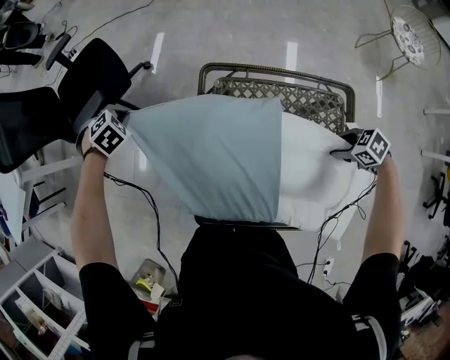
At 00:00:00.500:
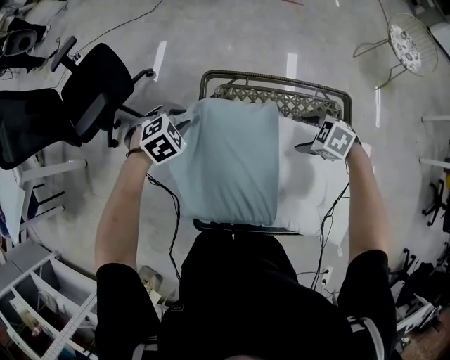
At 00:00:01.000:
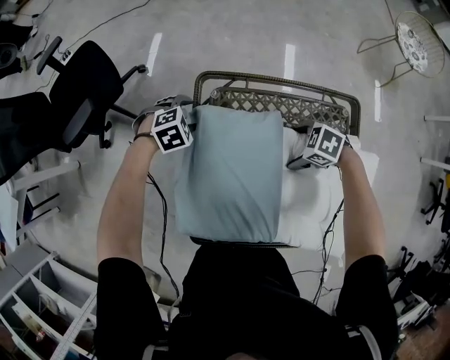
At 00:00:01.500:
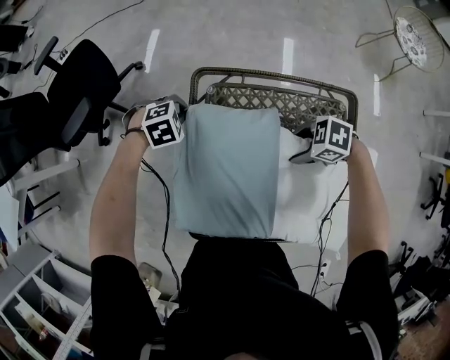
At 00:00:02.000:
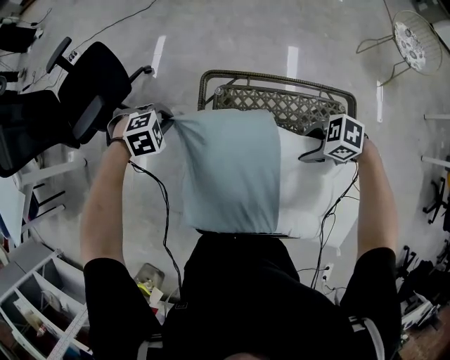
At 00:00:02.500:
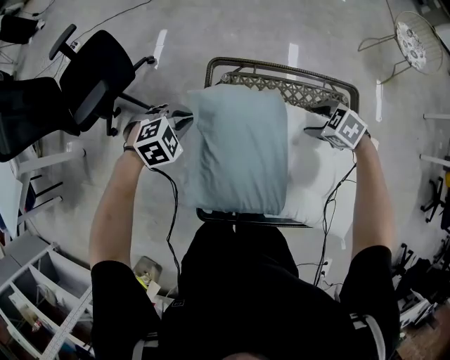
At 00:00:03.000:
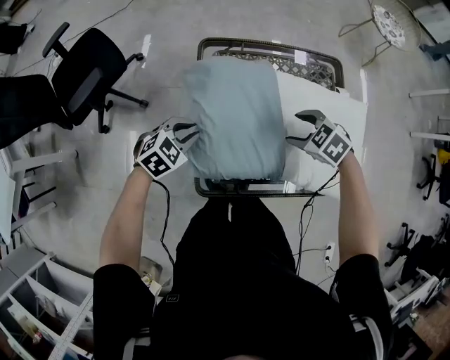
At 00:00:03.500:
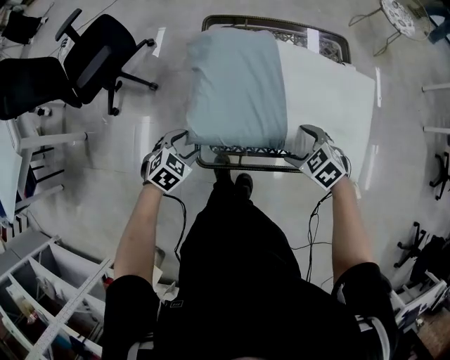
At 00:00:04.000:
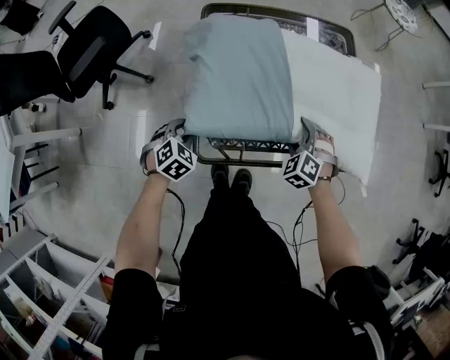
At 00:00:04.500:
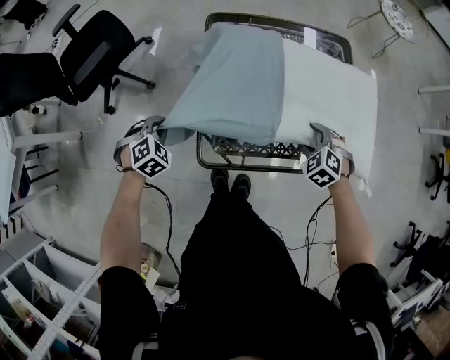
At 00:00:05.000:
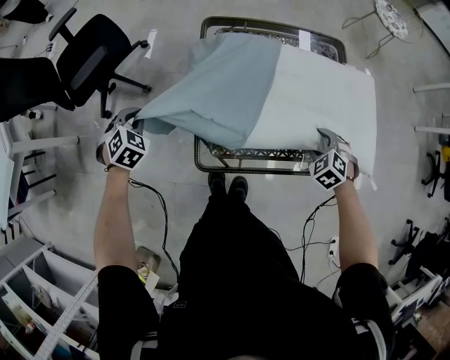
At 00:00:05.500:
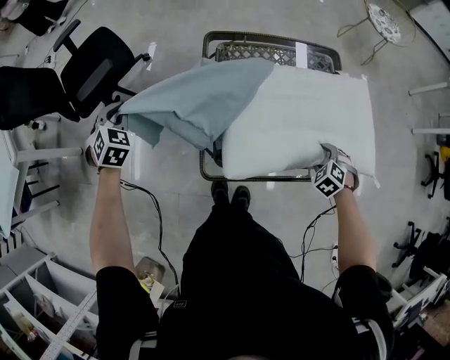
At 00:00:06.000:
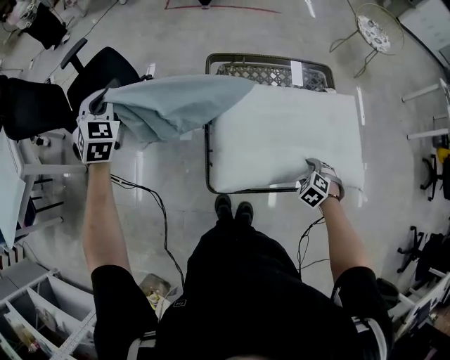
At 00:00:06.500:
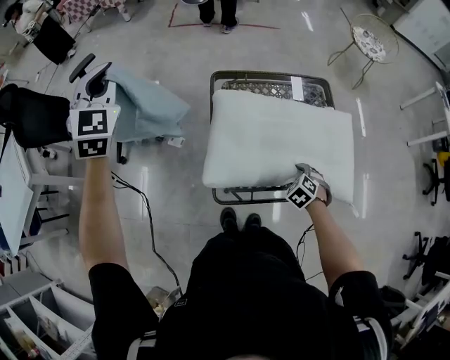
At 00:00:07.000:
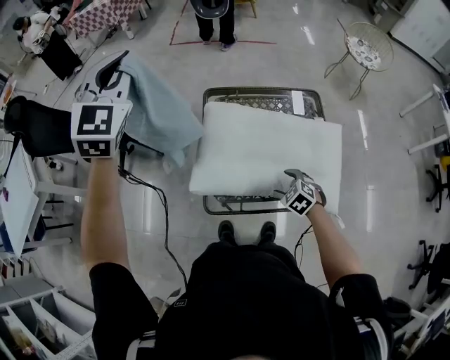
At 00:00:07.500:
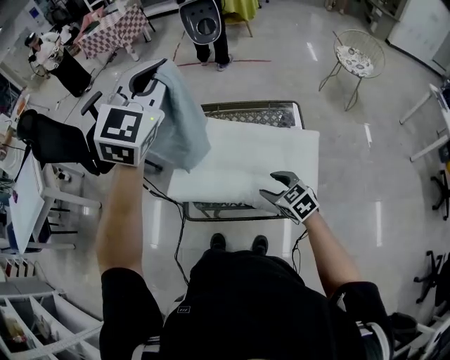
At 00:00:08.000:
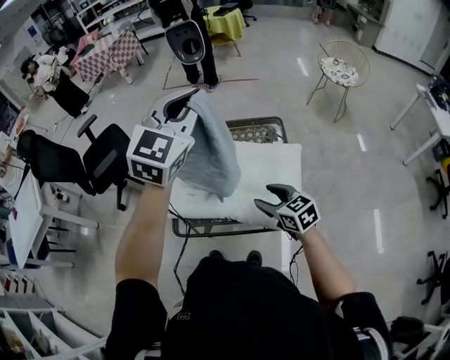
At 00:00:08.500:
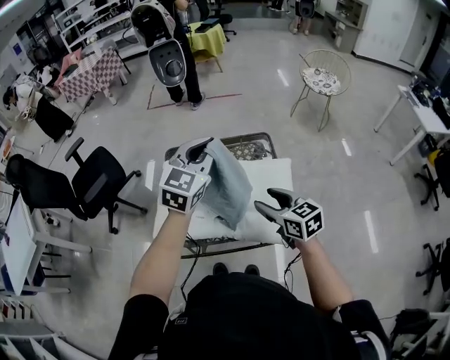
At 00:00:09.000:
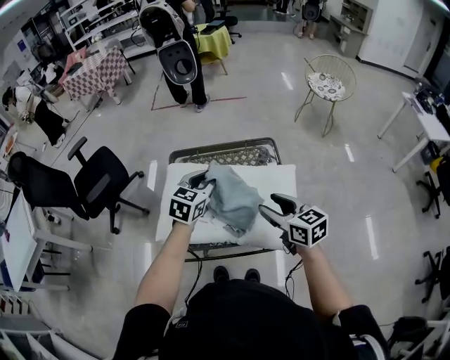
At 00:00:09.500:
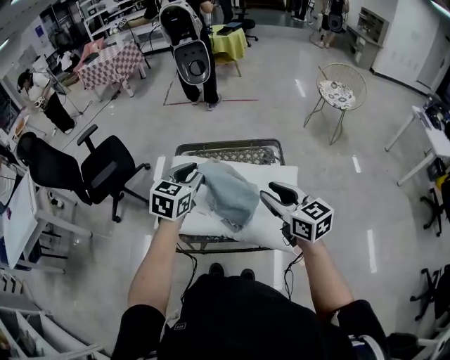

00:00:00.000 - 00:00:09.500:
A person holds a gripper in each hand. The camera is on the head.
00:00:00.000 - 00:00:02.000: The left gripper reaches approximately 10 cm downward, then returns, swivels some 30 degrees, and opens and closes again, while the right gripper shifts by approximately 15 cm, changes its angle by roughly 20 degrees, and opens, then closes once more.
00:00:02.000 - 00:00:04.000: The right gripper shifts by approximately 25 cm, and rotates some 70 degrees. The left gripper shifts by some 30 cm, swivels about 30 degrees, and opens and closes again.
00:00:04.000 - 00:00:05.500: The right gripper is displaced to the right by approximately 10 cm. The left gripper goes approximately 30 cm to the left, upward and forward, and changes its angle by approximately 30 degrees.
00:00:05.500 - 00:00:07.500: The right gripper is displaced upward by roughly 15 cm, and points its fingers about 30 degrees further upward, while the left gripper shifts roughly 60 cm upward and to the right, and tilts its fingers about 40 degrees upward.
00:00:07.500 - 00:00:09.500: The right gripper shifts about 20 cm upward and to the right, and swivels about 30 degrees; the left gripper moves downward, some 25 cm, and changes its angle by approximately 40 degrees.

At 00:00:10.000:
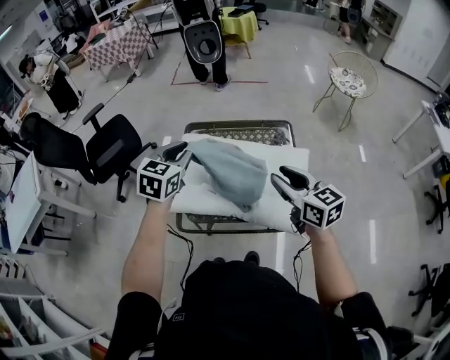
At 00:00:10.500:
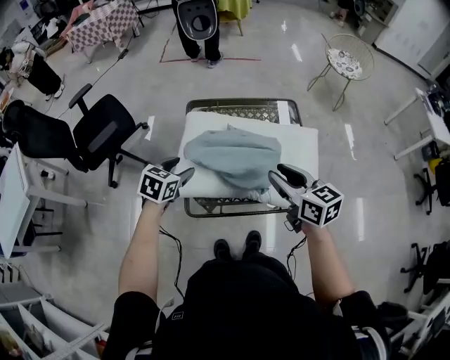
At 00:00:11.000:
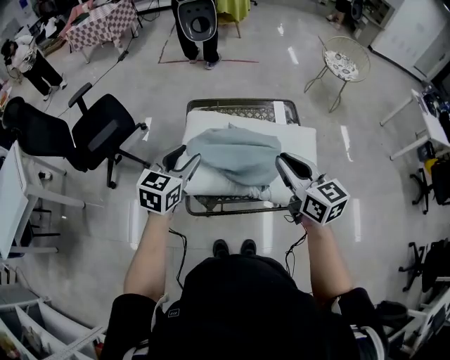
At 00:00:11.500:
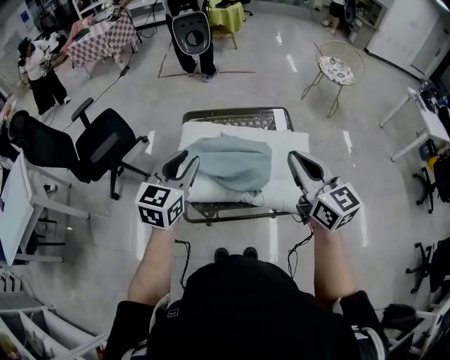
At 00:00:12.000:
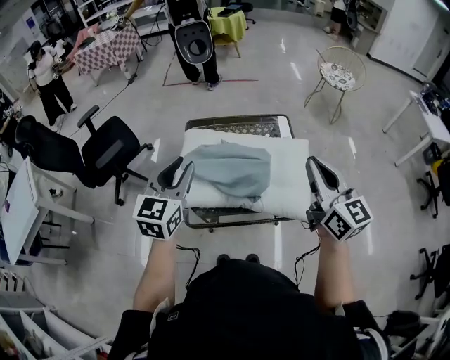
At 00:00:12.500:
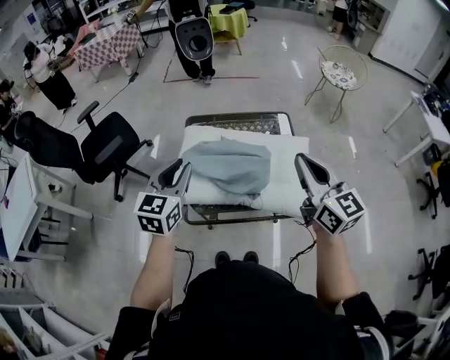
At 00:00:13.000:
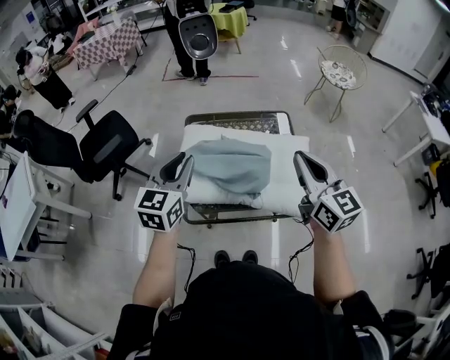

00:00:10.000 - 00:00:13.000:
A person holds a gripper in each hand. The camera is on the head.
00:00:10.000 - 00:00:11.500: The right gripper shifts some 10 cm upward; the left gripper shifts approximately 10 cm backward, reaches roughly 15 cm downward, then returns, and opens and closes again.

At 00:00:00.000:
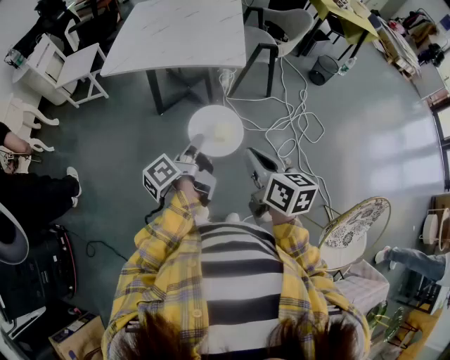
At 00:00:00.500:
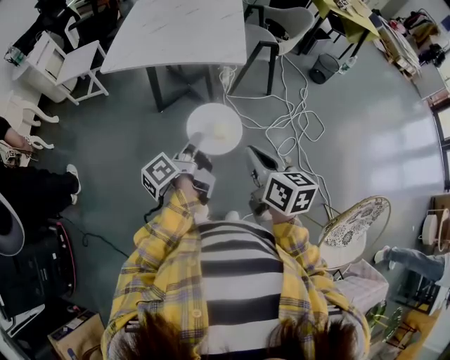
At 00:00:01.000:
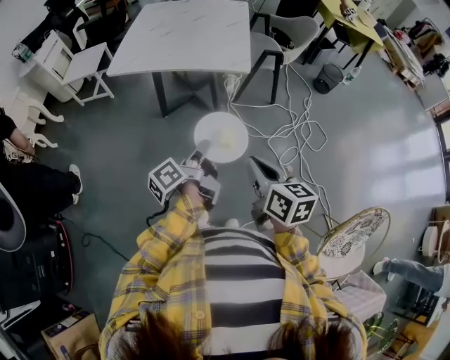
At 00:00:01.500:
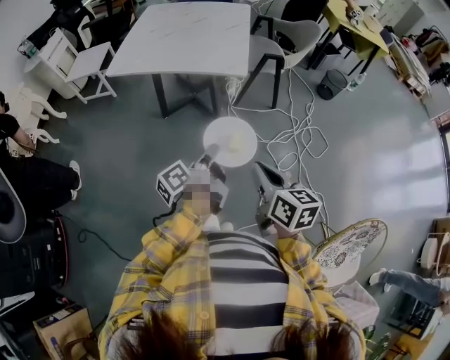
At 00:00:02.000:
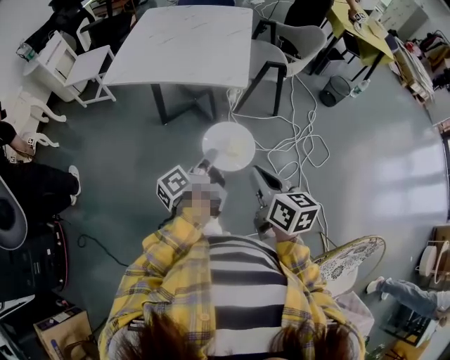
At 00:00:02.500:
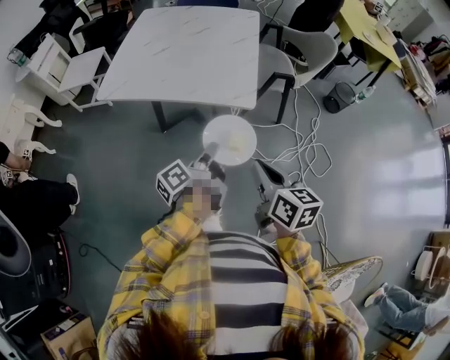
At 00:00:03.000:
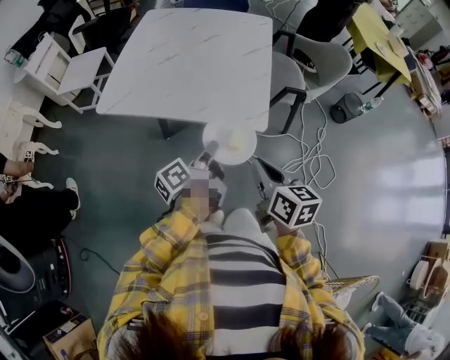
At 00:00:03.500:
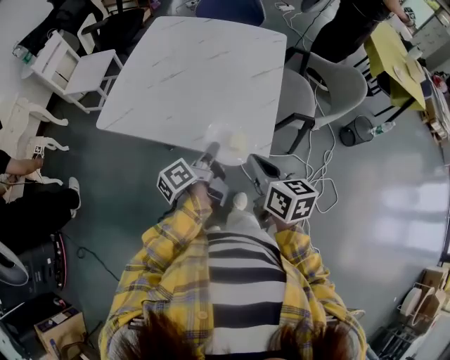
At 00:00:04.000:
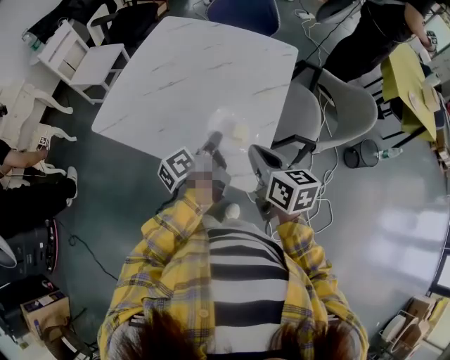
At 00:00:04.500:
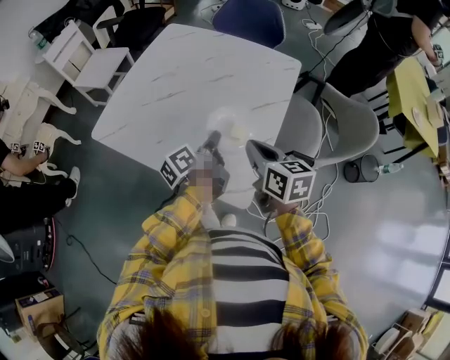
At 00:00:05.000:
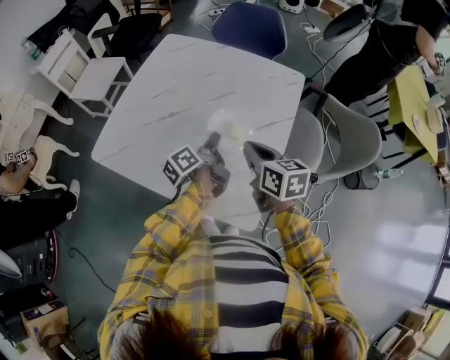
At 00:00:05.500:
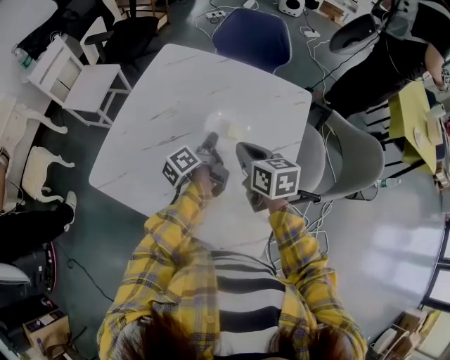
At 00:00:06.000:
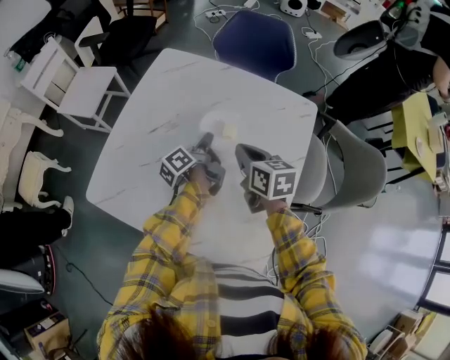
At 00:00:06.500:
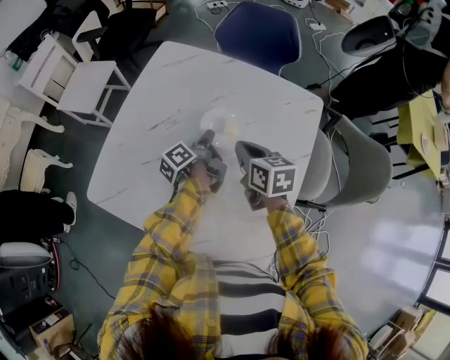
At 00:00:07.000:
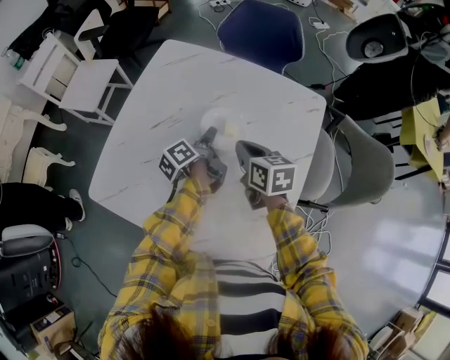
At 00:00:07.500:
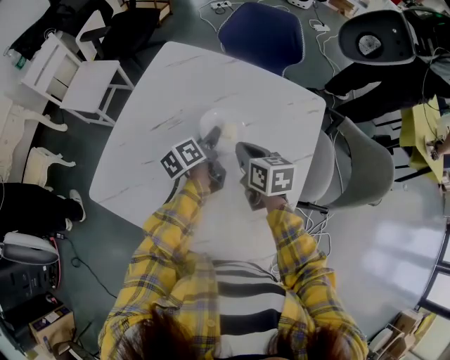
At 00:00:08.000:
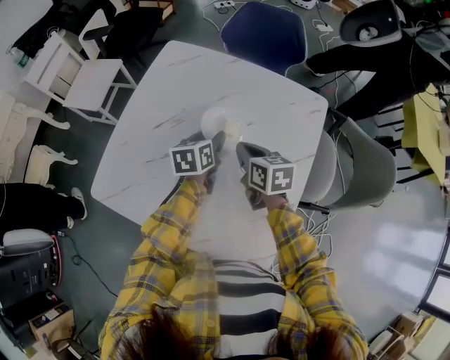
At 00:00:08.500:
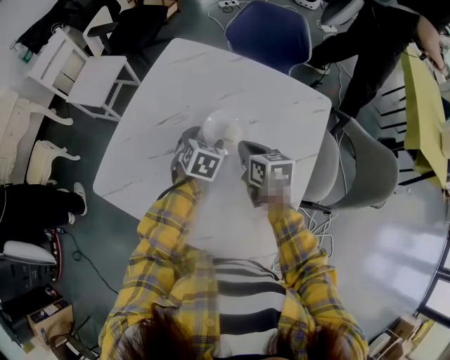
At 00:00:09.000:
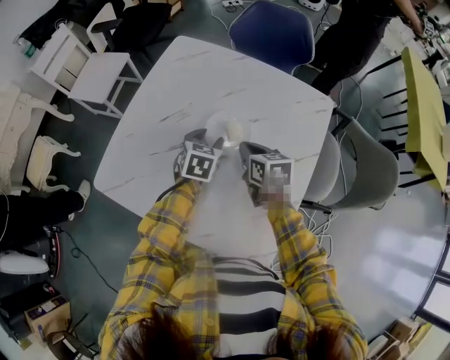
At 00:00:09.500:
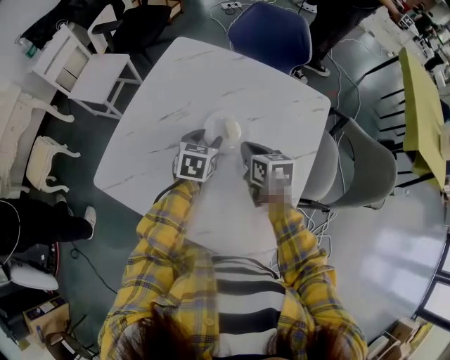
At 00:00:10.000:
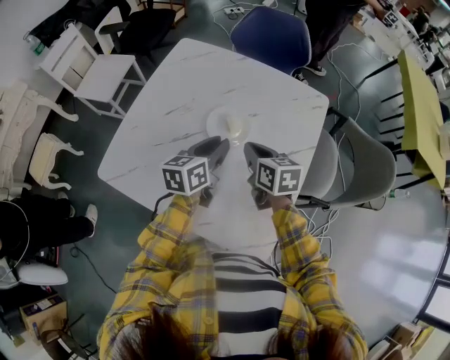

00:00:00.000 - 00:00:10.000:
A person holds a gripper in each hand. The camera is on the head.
00:00:00.000 - 00:00:02.000: Both grippers travel together to the right and forward, roughly 10 cm.
00:00:02.000 - 00:00:04.000: The pair of grippers is taken forward, some 40 cm.
00:00:04.000 - 00:00:06.000: The grippers both shift forward by about 30 cm.
00:00:06.000 - 00:00:08.000: The left gripper rolls clockwise, seen from behind, by about 50 degrees, and opens.
00:00:08.000 - 00:00:10.000: The right gripper ends up roughly 5 cm from where it was. Meanwhile the left gripper moves backward and upward, roughly 10 cm, and closes its fingers.

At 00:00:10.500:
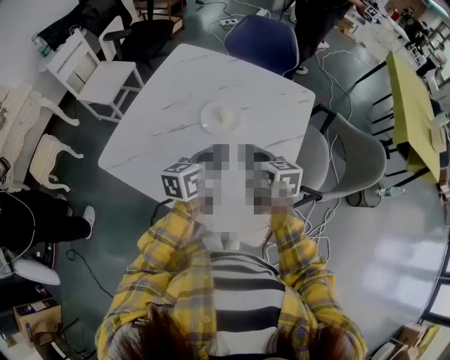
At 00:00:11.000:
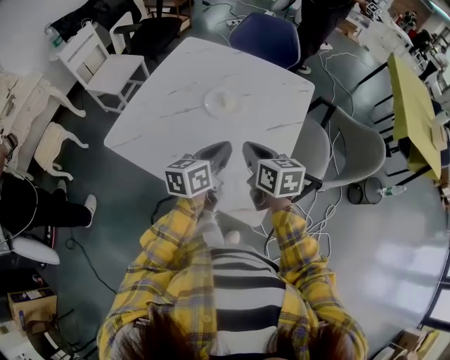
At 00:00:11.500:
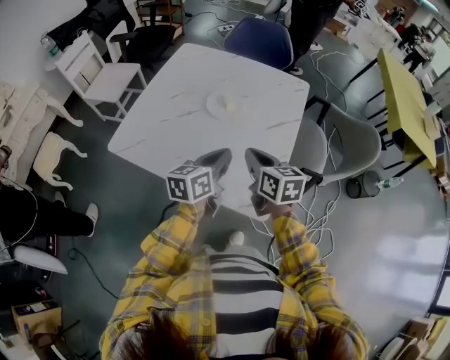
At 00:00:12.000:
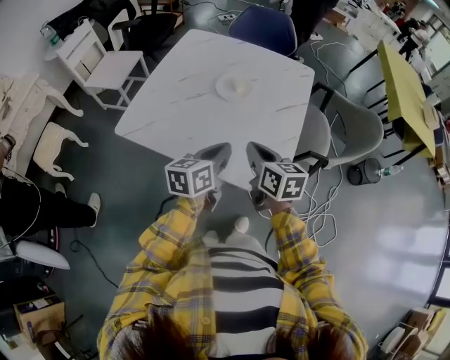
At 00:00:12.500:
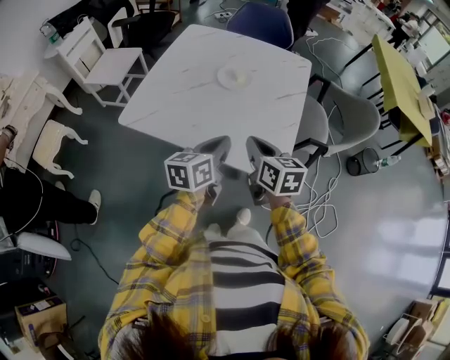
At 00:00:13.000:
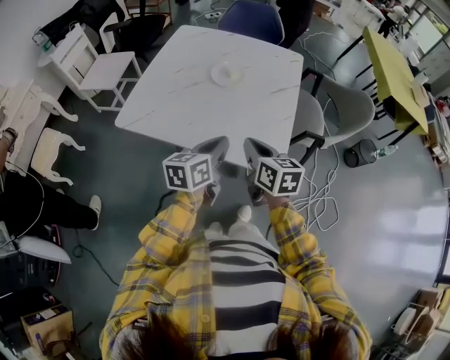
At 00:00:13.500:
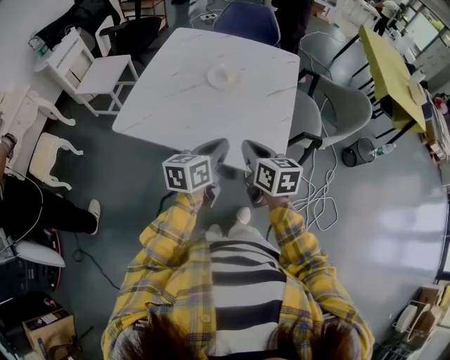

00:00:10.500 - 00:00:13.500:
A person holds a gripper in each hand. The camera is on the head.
00:00:10.500 - 00:00:12.000: The two grippers go approximately 15 cm backward.
00:00:12.000 - 00:00:13.500: The right gripper moves backward, roughly 5 cm.
